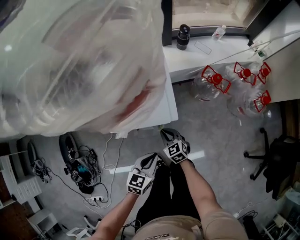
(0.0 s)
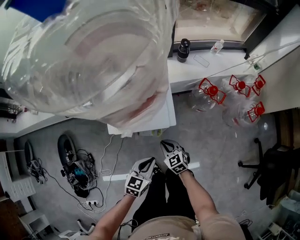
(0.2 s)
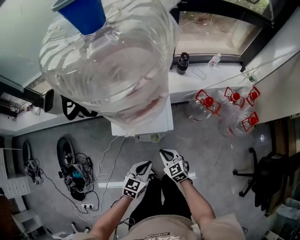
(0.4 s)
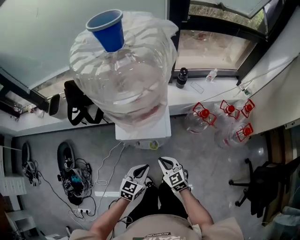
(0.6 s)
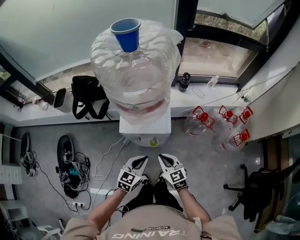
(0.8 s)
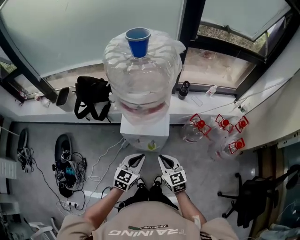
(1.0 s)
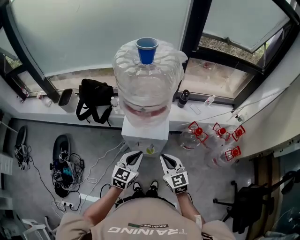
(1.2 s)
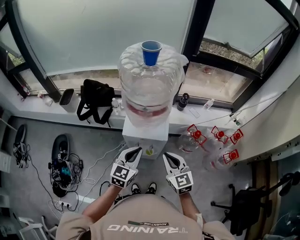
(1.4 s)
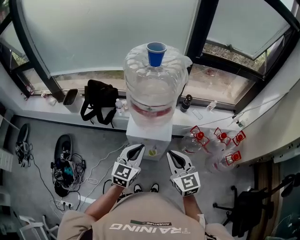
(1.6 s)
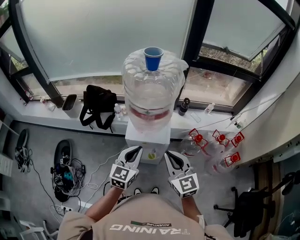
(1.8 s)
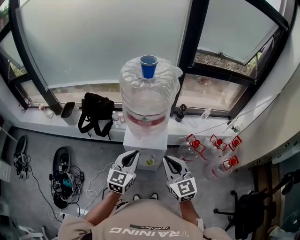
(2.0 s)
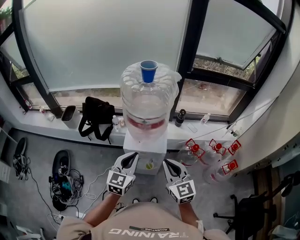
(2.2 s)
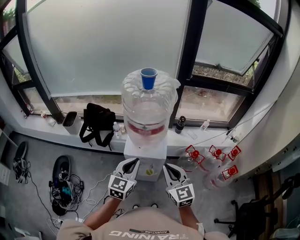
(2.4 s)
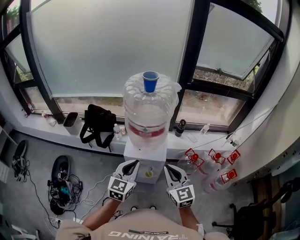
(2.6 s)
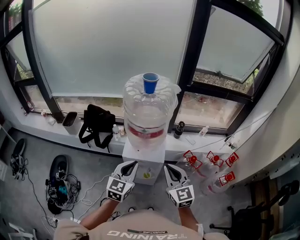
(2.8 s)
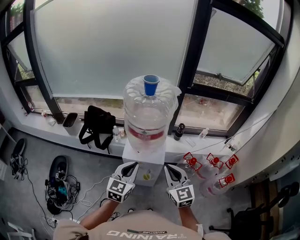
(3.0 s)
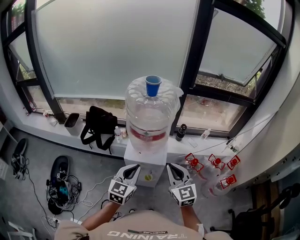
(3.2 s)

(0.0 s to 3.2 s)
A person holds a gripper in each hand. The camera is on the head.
0.0 s - 1.6 s: Both grippers move upward, some 40 cm. The left gripper swivels some 30 degrees. The right gripper rotates some 30 degrees.
1.6 s - 3.2 s: The grippers move only a little.

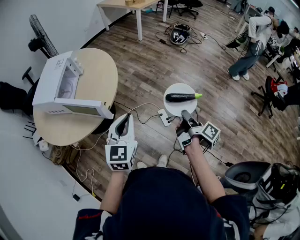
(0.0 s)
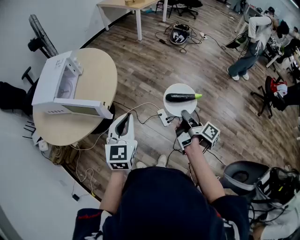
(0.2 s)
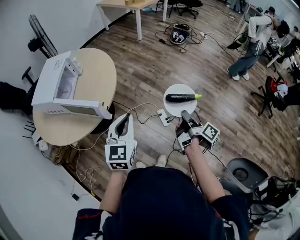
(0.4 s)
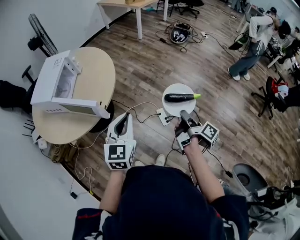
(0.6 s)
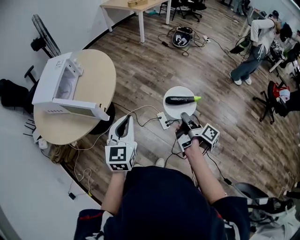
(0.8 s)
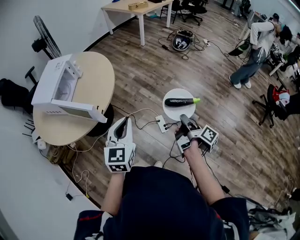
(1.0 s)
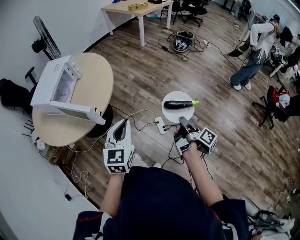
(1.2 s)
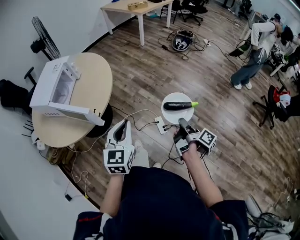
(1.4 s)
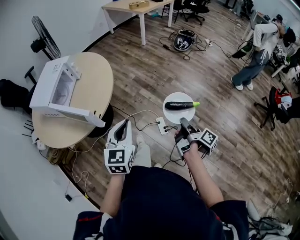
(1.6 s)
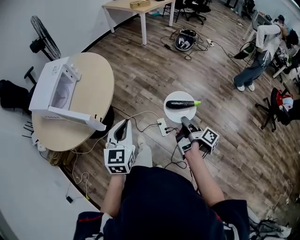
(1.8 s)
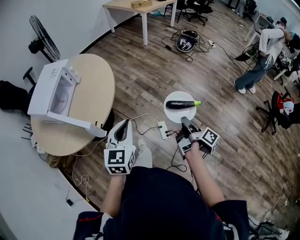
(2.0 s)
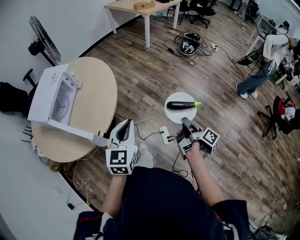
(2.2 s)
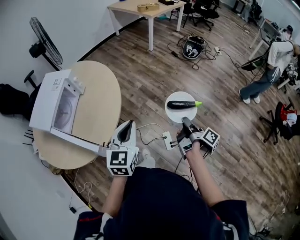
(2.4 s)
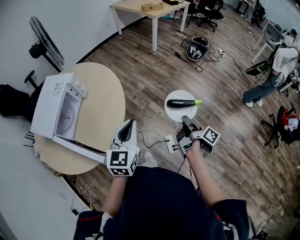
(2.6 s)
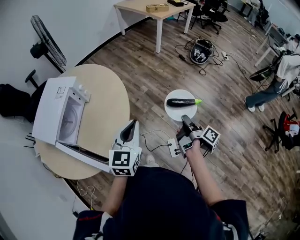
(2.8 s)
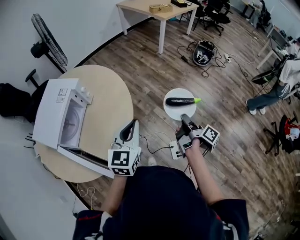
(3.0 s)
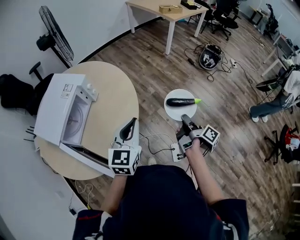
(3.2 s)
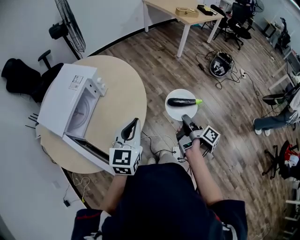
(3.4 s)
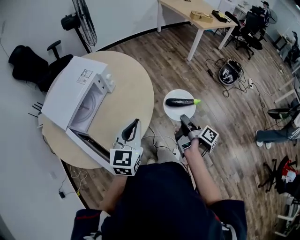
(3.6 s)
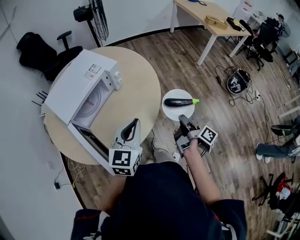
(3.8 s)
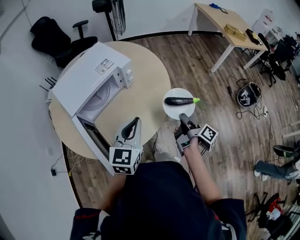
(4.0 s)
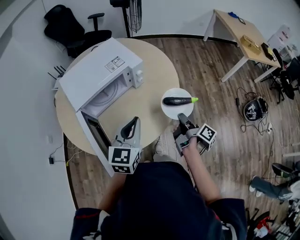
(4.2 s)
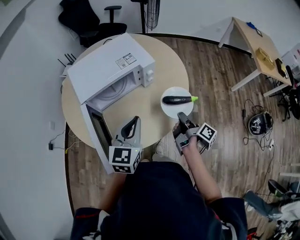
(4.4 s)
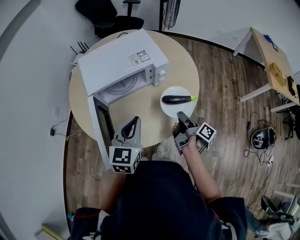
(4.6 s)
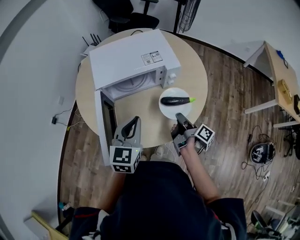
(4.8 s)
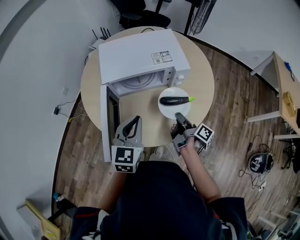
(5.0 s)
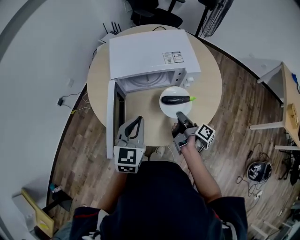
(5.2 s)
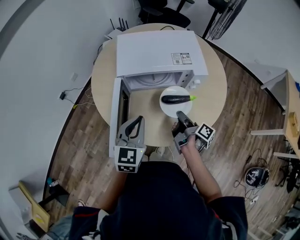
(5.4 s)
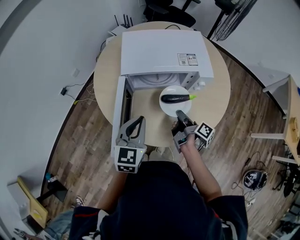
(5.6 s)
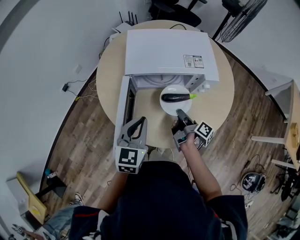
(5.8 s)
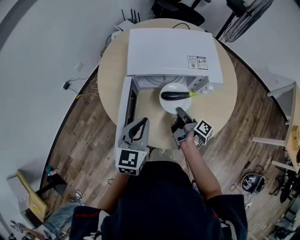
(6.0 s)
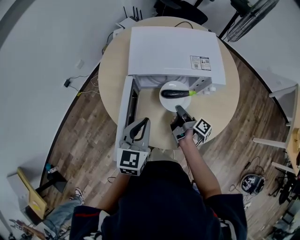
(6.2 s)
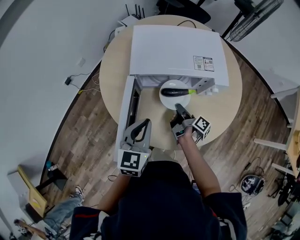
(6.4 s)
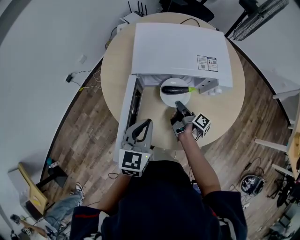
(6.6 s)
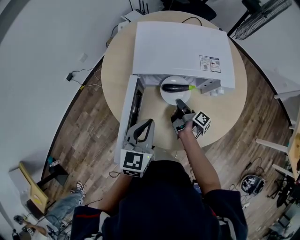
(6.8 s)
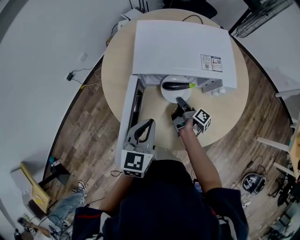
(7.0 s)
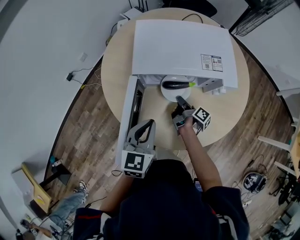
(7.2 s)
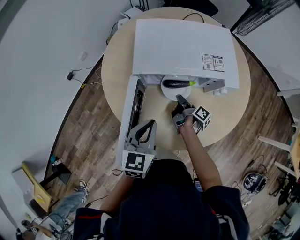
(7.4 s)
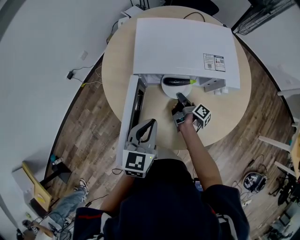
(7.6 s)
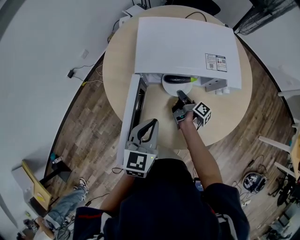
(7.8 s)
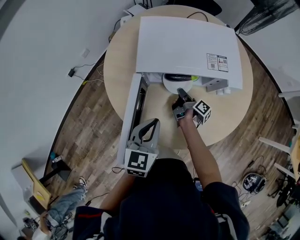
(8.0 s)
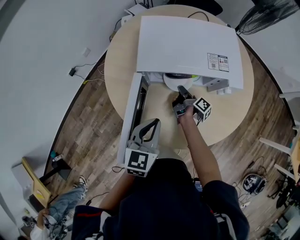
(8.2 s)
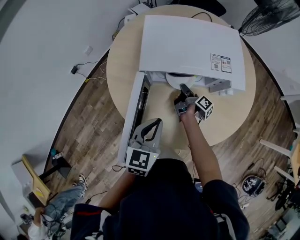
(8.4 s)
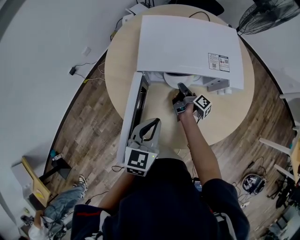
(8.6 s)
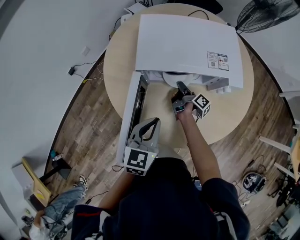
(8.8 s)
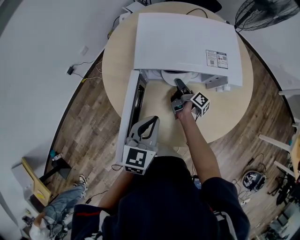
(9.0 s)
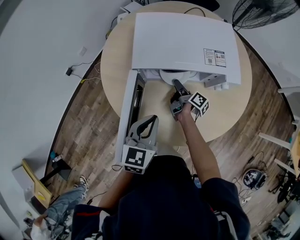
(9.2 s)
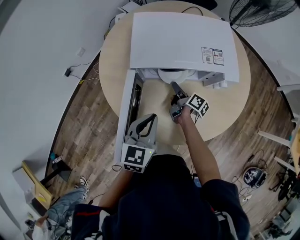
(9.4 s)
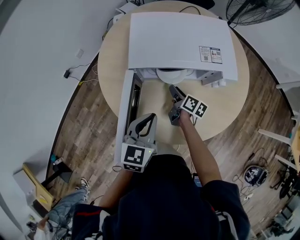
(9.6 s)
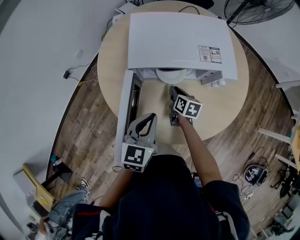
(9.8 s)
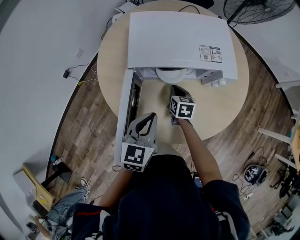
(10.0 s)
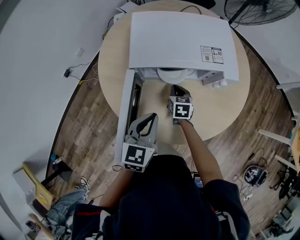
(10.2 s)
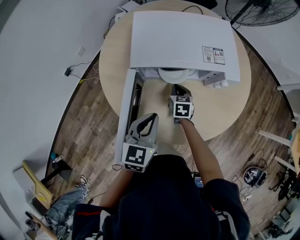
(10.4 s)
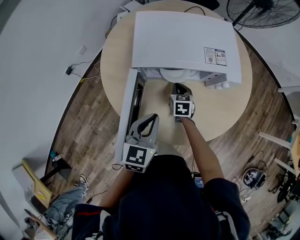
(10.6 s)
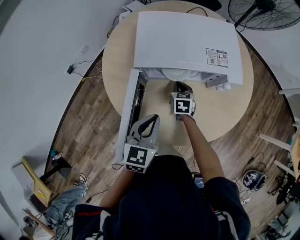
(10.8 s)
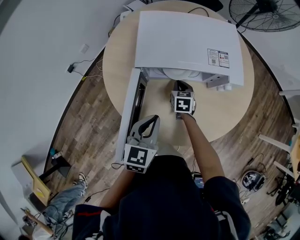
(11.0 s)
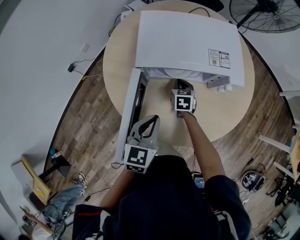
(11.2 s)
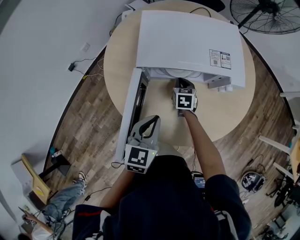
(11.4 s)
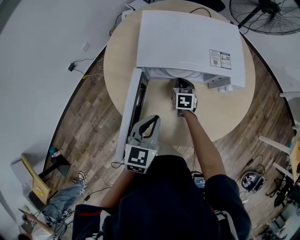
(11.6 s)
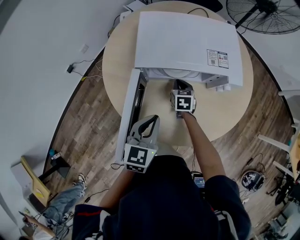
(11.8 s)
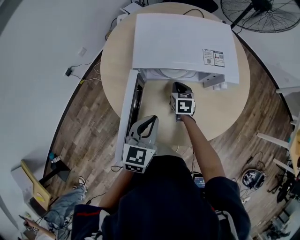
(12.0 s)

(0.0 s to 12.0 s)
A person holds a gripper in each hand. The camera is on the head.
0.0 s - 1.6 s: The grippers both shift to the right by about 5 cm.
1.6 s - 3.0 s: The left gripper shifts some 30 cm forward; the right gripper goes some 40 cm forward and to the left.
3.0 s - 4.4 s: The right gripper moves some 35 cm, and swivels some 50 degrees, while the left gripper ends up some 20 cm from where it was, and rotates about 50 degrees.
4.4 s - 6.0 s: The right gripper shifts by about 25 cm, and changes its angle by approximately 30 degrees. The left gripper moves about 15 cm, and changes its angle by approximately 30 degrees.
6.0 s - 7.6 s: The right gripper shifts some 10 cm forward and downward.
7.6 s - 9.0 s: There are only small adjustments of the grippers.
9.0 s - 10.4 s: The right gripper twists some 80 degrees counterclockwise, seen from behind.
10.4 s - 12.0 s: The grippers make only small movements.

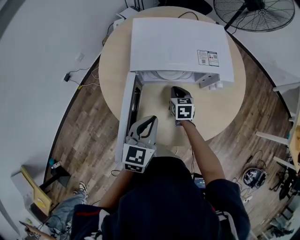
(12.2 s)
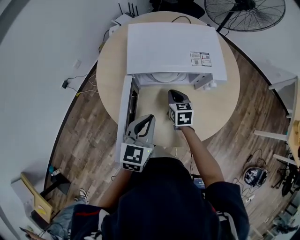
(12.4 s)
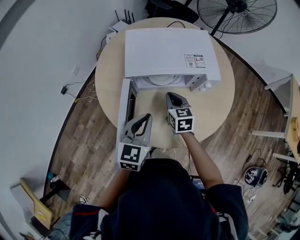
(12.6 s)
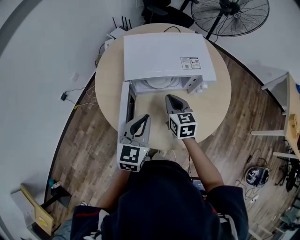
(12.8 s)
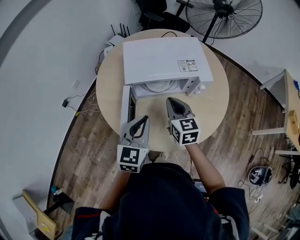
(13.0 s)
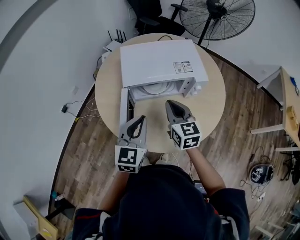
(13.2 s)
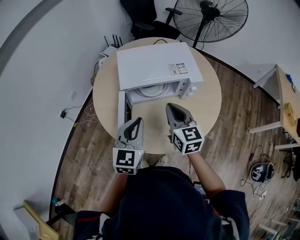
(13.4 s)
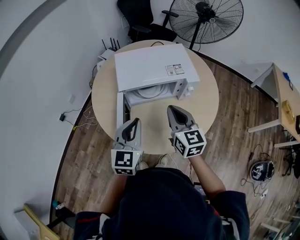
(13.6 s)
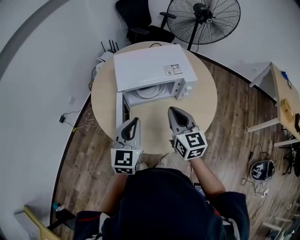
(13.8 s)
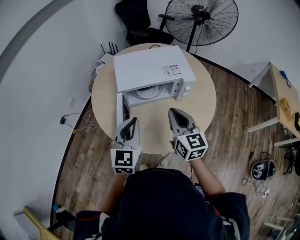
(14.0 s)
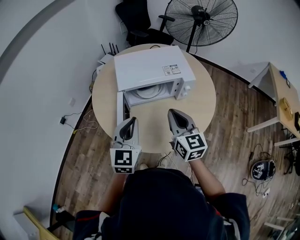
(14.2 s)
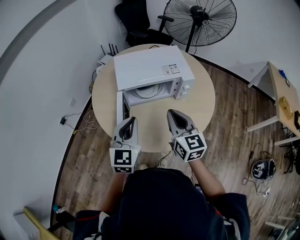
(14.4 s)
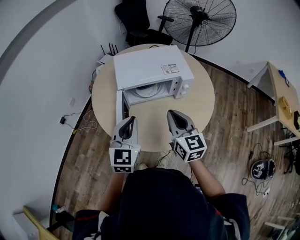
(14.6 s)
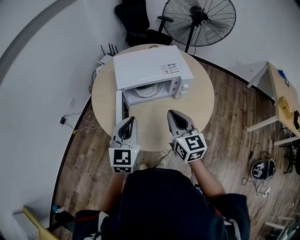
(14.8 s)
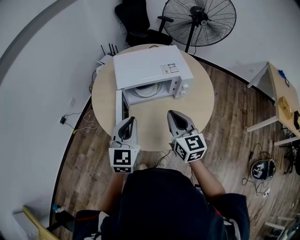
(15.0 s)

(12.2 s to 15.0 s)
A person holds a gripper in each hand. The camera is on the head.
12.2 s - 13.6 s: The left gripper travels upward by some 10 cm. Meanwhile the right gripper shifts some 30 cm upward and backward, and swivels approximately 30 degrees.
13.6 s - 15.0 s: The right gripper travels backward by some 5 cm.

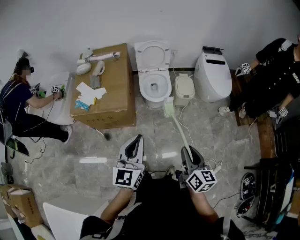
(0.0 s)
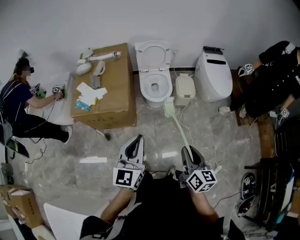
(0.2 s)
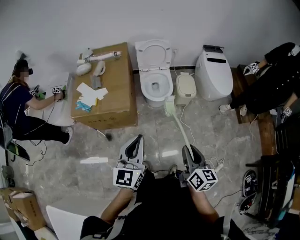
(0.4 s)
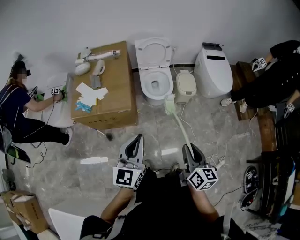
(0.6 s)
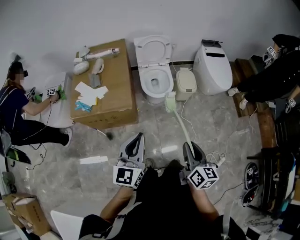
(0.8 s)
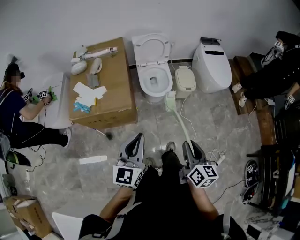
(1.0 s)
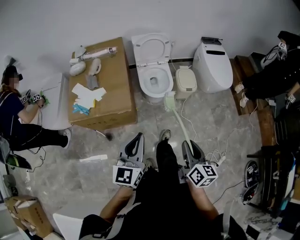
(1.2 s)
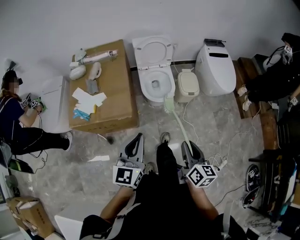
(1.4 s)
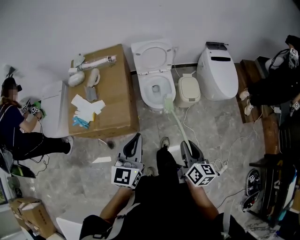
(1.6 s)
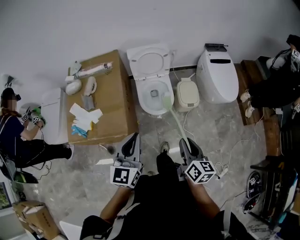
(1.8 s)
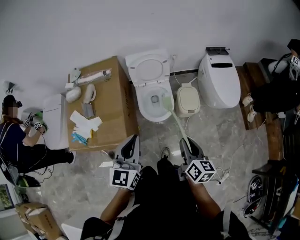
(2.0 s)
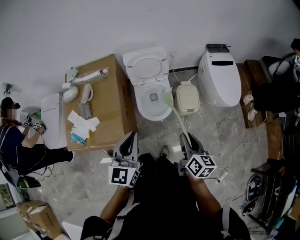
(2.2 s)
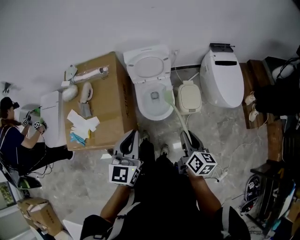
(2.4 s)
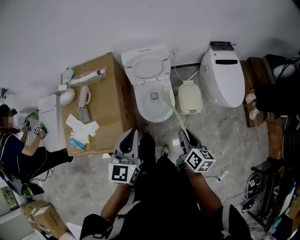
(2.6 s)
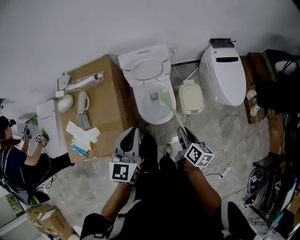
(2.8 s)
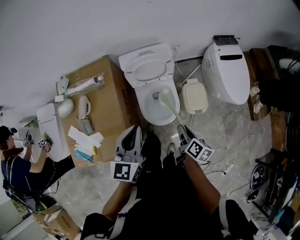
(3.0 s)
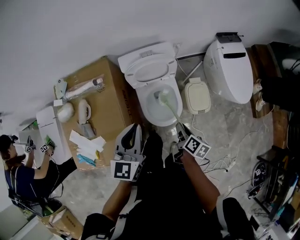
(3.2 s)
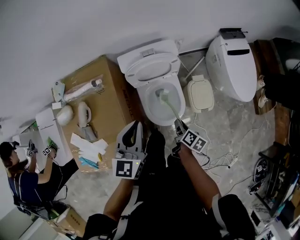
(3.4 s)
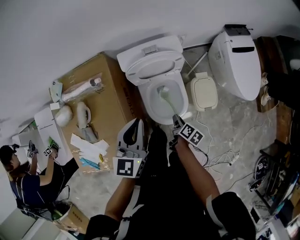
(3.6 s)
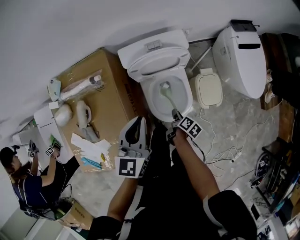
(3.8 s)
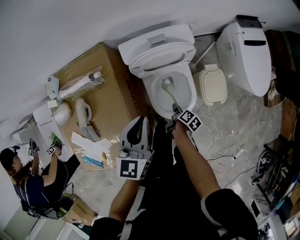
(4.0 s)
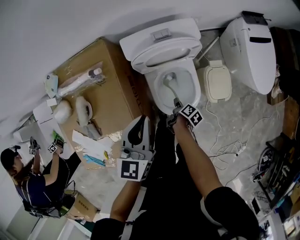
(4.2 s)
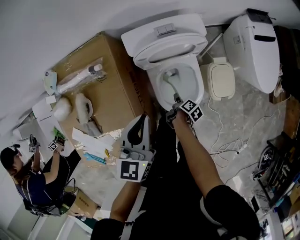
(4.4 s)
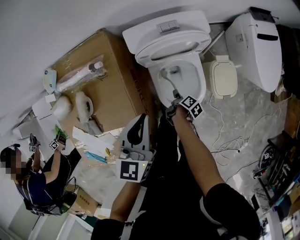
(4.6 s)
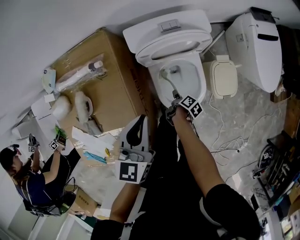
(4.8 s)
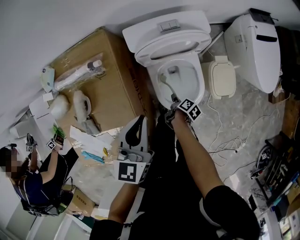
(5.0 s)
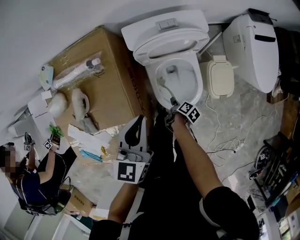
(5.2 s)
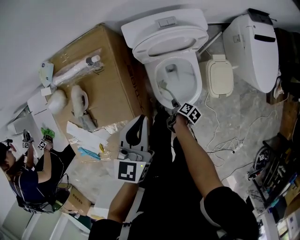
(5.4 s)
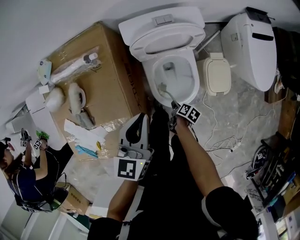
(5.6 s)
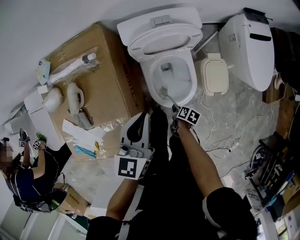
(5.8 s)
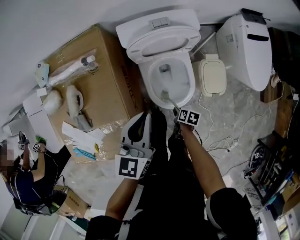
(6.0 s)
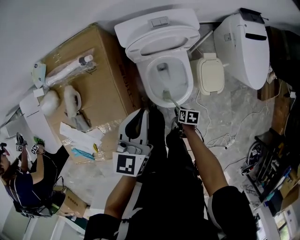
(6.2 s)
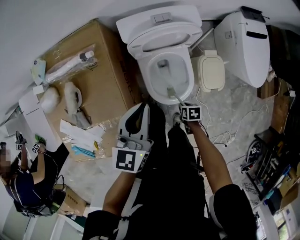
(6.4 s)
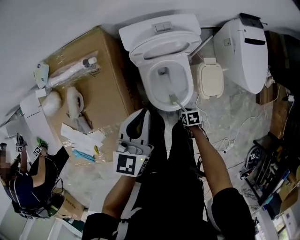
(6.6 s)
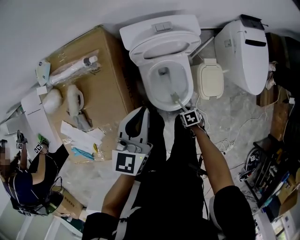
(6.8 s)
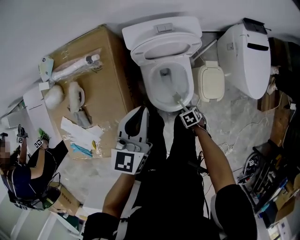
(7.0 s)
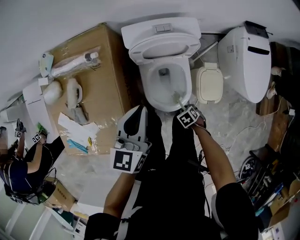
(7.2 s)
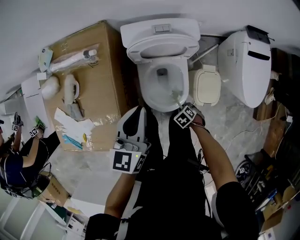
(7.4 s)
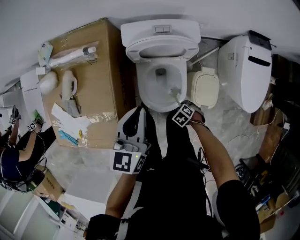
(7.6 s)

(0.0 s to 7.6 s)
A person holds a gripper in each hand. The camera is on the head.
0.0 s - 1.6 s: The left gripper shifts by about 20 cm.
1.6 s - 3.0 s: The left gripper ends up about 35 cm from where it was.
3.0 s - 4.6 s: The left gripper ends up roughly 25 cm from where it was.
